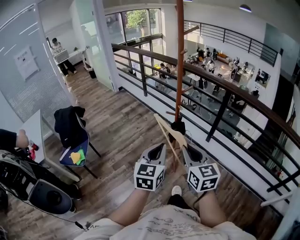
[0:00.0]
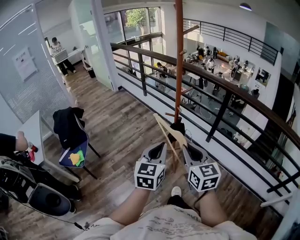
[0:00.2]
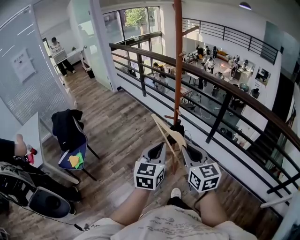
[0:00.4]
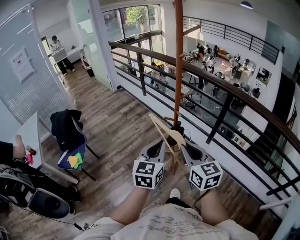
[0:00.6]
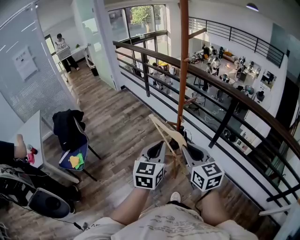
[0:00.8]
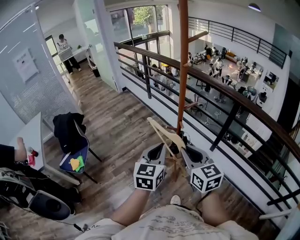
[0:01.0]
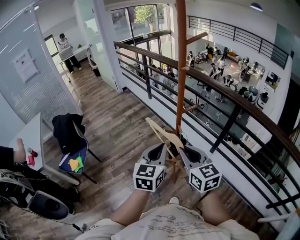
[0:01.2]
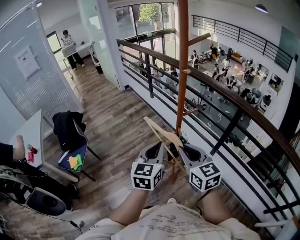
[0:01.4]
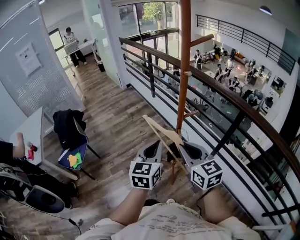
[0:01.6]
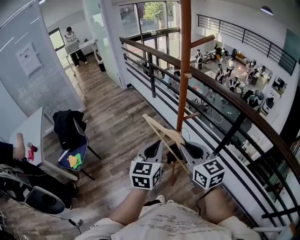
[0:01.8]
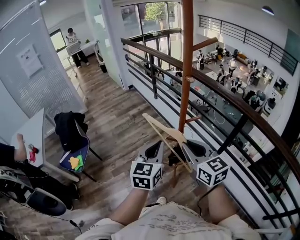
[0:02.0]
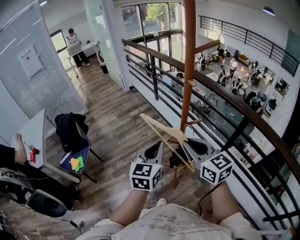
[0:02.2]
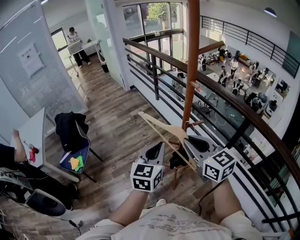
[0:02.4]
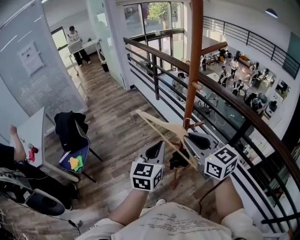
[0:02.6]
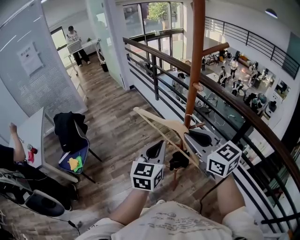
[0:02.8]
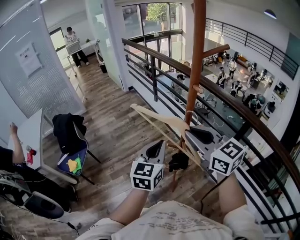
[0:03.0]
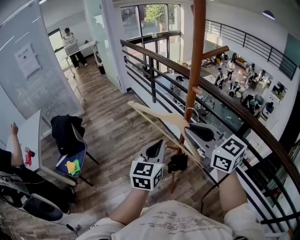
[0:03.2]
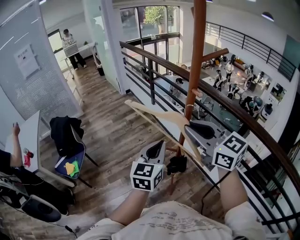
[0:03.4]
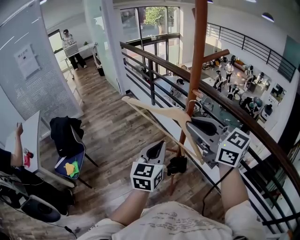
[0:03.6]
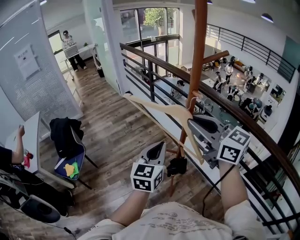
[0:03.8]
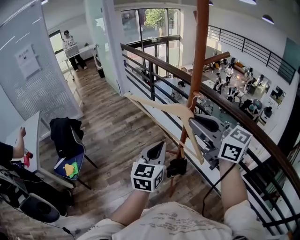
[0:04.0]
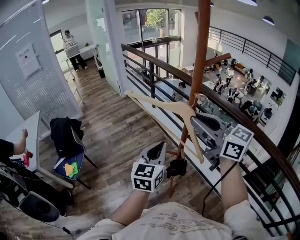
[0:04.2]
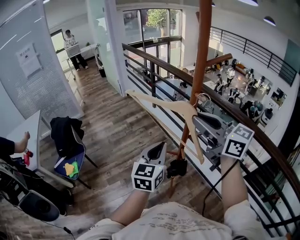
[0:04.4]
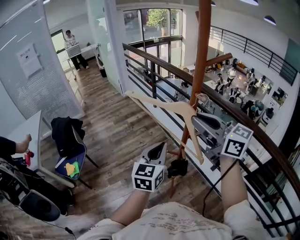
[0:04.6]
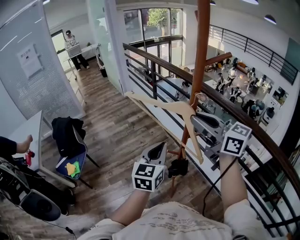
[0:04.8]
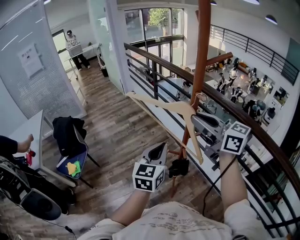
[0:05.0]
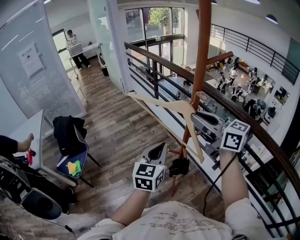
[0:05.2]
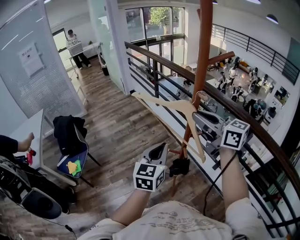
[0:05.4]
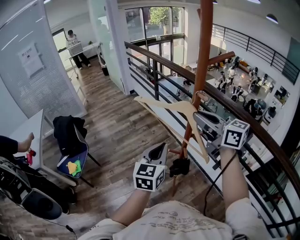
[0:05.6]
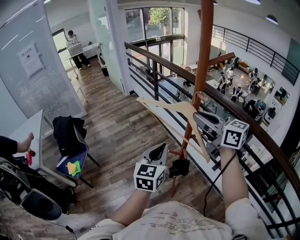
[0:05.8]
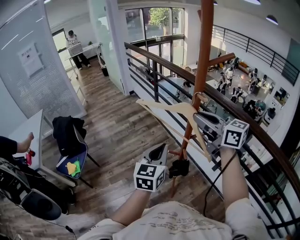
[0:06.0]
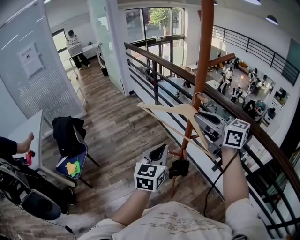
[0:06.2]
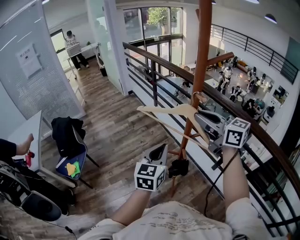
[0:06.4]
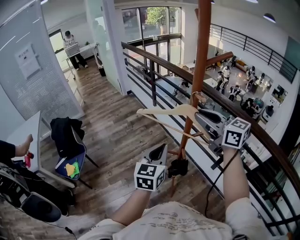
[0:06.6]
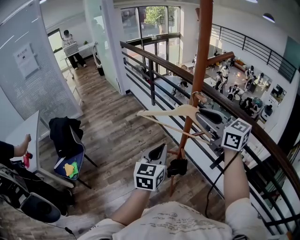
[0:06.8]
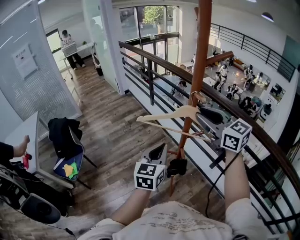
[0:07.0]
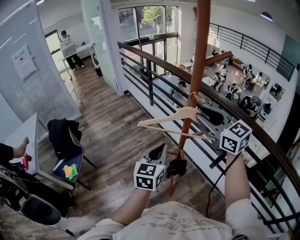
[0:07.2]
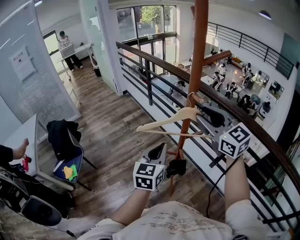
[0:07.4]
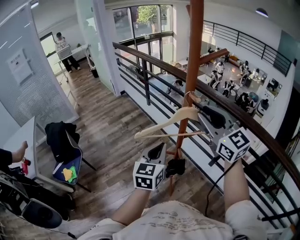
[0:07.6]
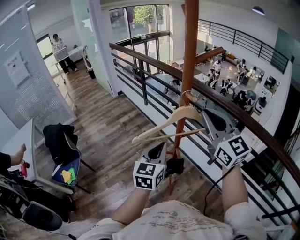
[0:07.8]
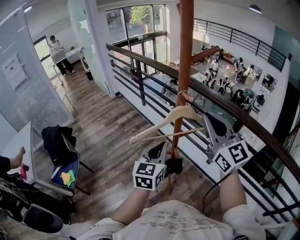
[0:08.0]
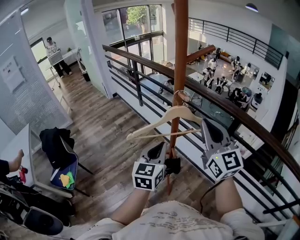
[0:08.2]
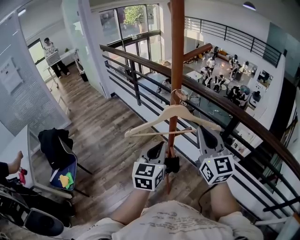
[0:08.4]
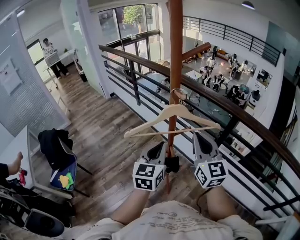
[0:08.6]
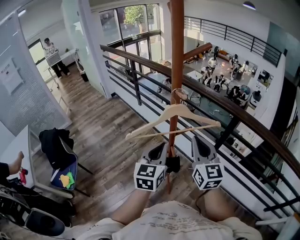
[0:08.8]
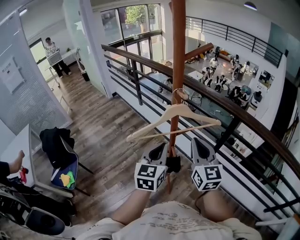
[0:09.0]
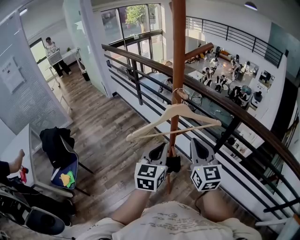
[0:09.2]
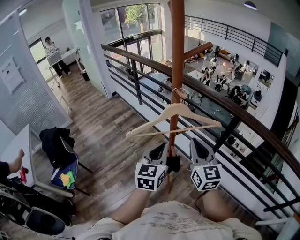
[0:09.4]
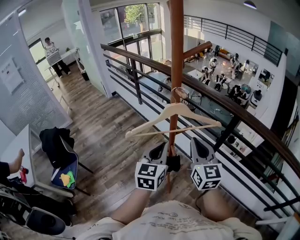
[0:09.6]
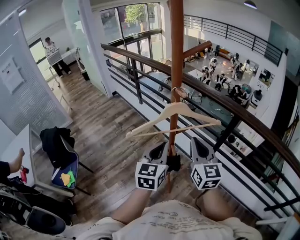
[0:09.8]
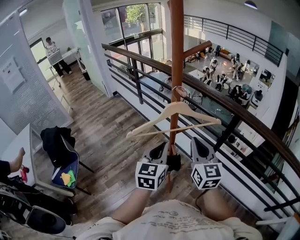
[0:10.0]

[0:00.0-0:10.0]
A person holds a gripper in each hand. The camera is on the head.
0:00.0 to 0:01.4: Both grippers travel together forward, roughly 20 cm.
0:01.4 to 0:02.8: The right gripper moves forward and upward, about 15 cm. Meanwhile the left gripper is displaced forward by some 10 cm.
0:02.8 to 0:04.2: The right gripper heads upward, covering about 10 cm.
0:04.2 to 0:05.8: The right gripper shifts by about 5 cm.
0:05.8 to 0:07.2: The right gripper changes its angle by about 30 degrees.
0:07.2 to 0:08.6: The right gripper travels backward and downward by some 10 cm, changes its angle by approximately 30 degrees, and closes up.
0:08.6 to 0:10.0: The grippers make only small movements.

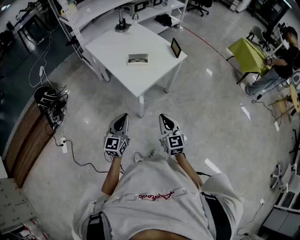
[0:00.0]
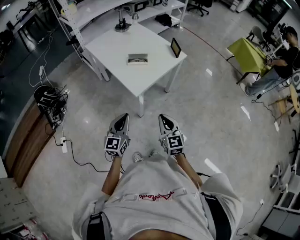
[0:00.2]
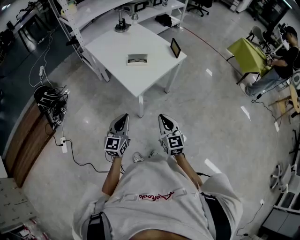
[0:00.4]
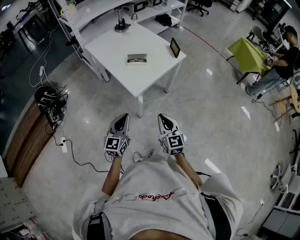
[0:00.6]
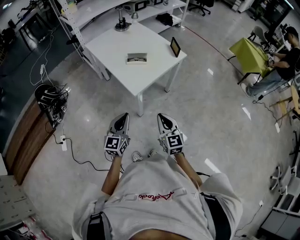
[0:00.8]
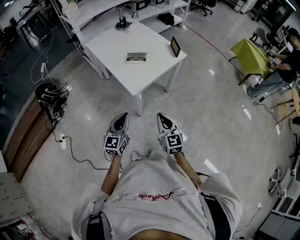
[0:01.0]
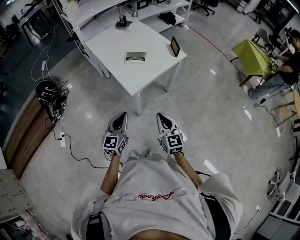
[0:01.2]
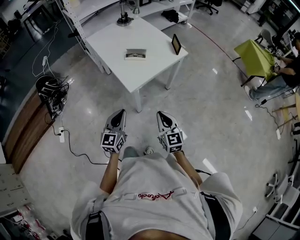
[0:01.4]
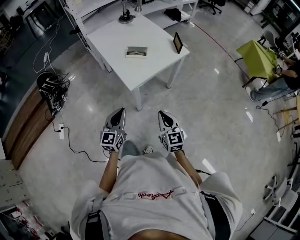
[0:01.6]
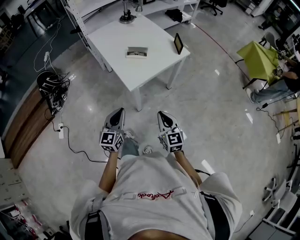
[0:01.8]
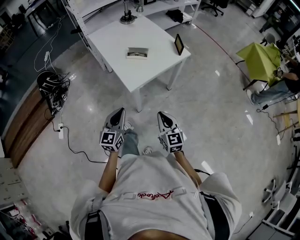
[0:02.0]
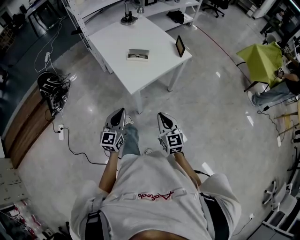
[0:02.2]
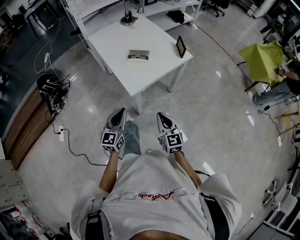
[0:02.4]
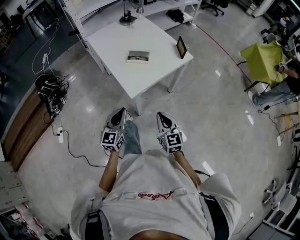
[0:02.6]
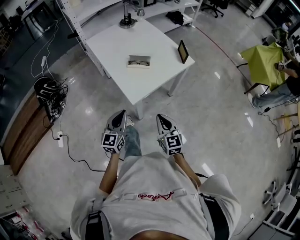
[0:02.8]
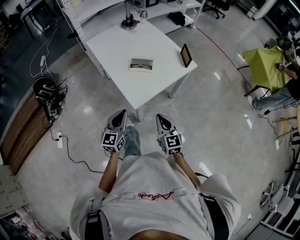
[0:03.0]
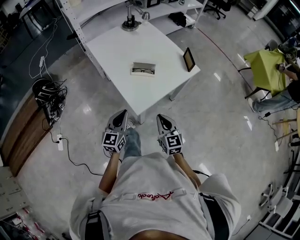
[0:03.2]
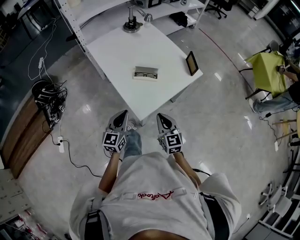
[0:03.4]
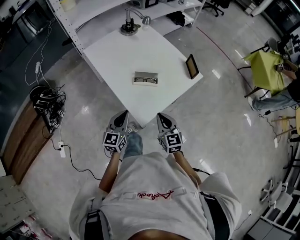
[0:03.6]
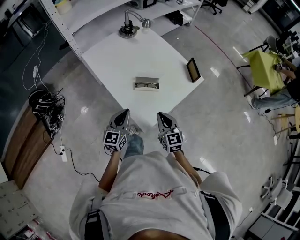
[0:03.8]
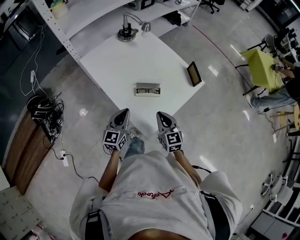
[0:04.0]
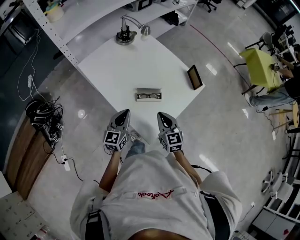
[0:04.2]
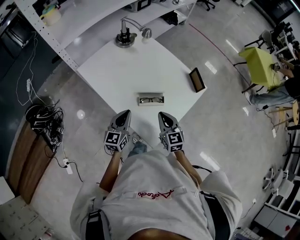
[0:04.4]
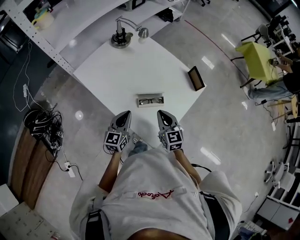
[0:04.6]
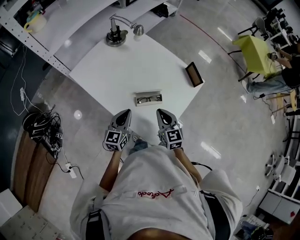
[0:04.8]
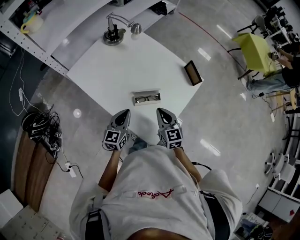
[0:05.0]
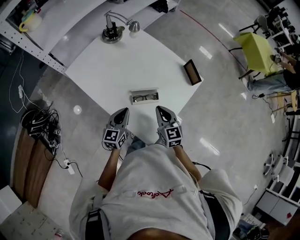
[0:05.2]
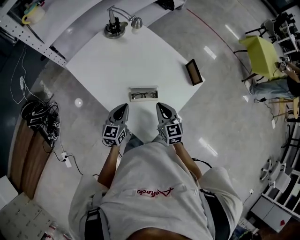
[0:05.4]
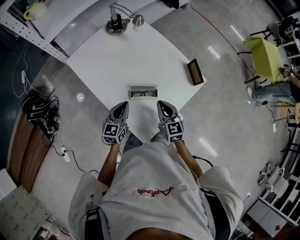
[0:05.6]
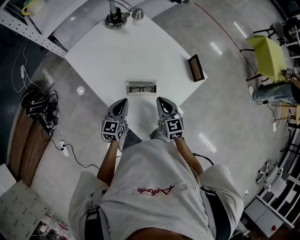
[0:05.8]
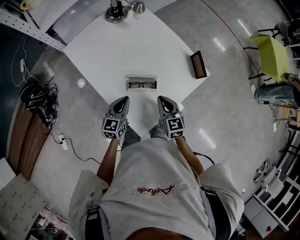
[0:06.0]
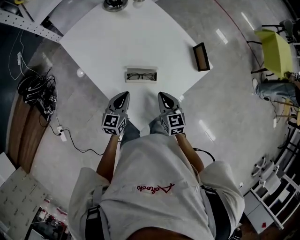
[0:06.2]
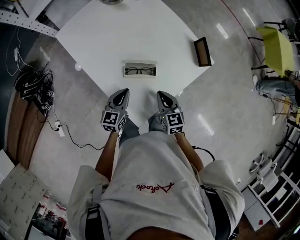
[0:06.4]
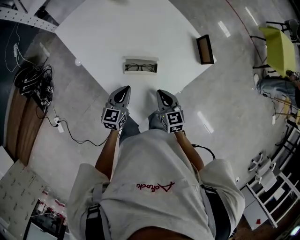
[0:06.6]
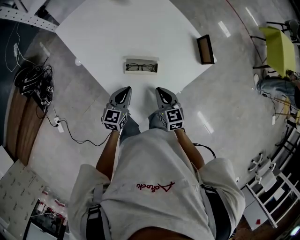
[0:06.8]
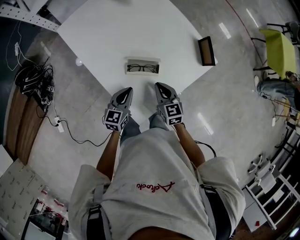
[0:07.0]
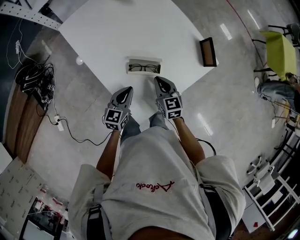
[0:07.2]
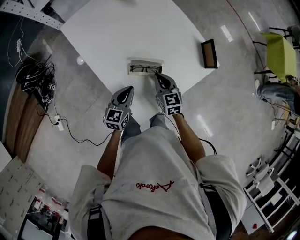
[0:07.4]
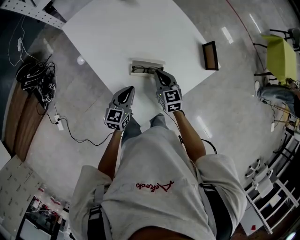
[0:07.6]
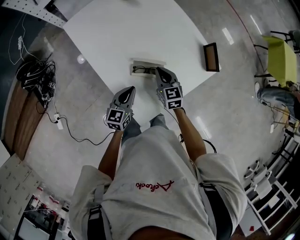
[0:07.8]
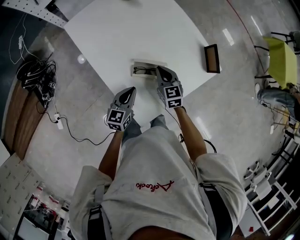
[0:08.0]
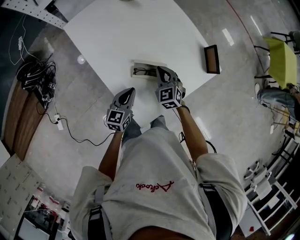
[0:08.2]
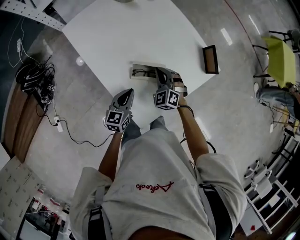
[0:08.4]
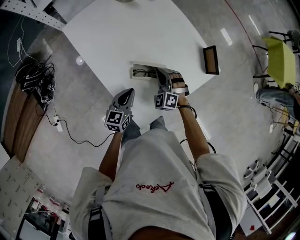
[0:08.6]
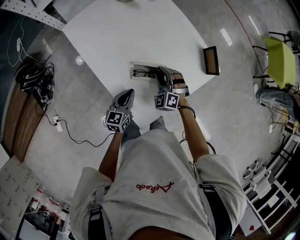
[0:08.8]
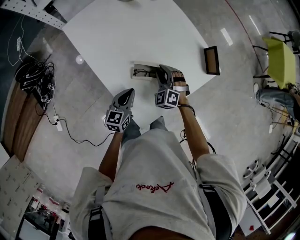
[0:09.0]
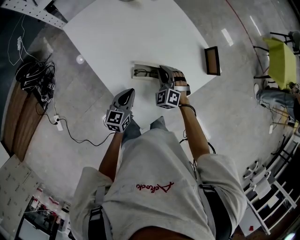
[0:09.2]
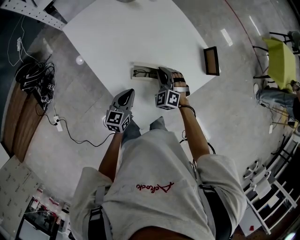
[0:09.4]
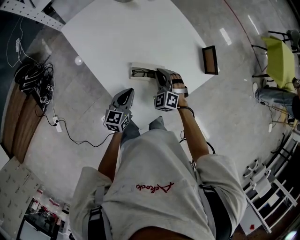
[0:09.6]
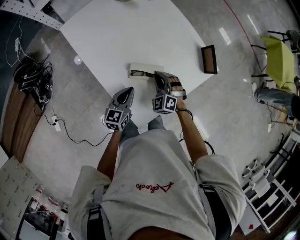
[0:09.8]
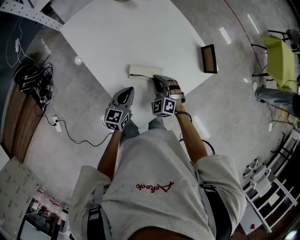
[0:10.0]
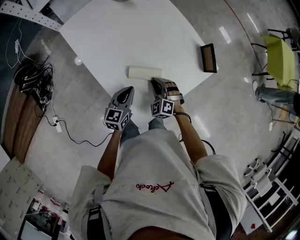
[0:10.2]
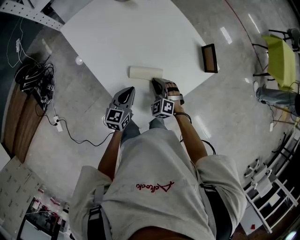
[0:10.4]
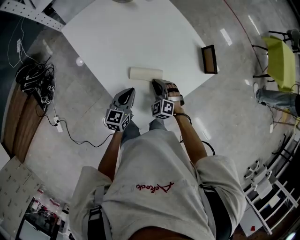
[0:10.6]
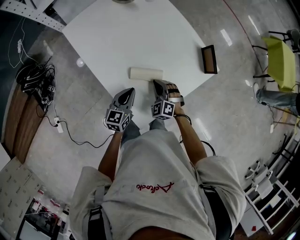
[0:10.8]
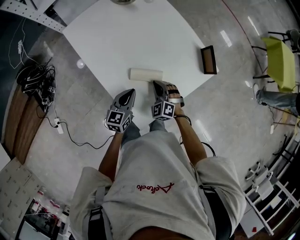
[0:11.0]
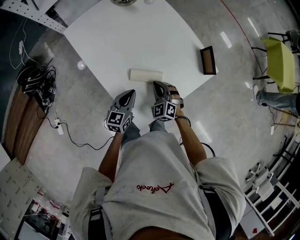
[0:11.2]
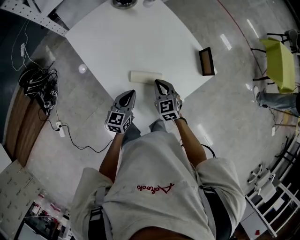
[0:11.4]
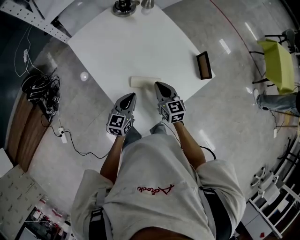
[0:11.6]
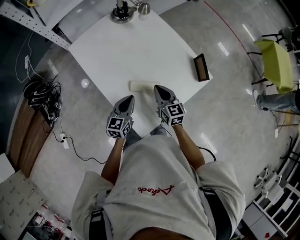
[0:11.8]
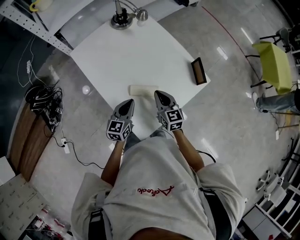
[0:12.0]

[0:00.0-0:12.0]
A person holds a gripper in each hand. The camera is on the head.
0:00.0 to 0:01.6: The right gripper shifts some 5 cm to the right.
0:01.6 to 0:03.0: The two grippers go about 10 cm forward.
0:03.0 to 0:04.4: The two grippers go some 25 cm forward.
0:04.4 to 0:06.0: The left gripper travels downward and to the right by about 10 cm; the right gripper is displaced to the right and downward by about 5 cm.
0:06.0 to 0:07.6: The right gripper moves forward and downward, approximately 10 cm.
0:07.6 to 0:09.0: The right gripper rotates around the line of its fingers by about 50 degrees, counterclockwise from behind, and opens its fingers.
0:09.0 to 0:10.4: The right gripper shifts about 5 cm backward.
0:10.4 to 0:12.0: The left gripper travels upward by approximately 5 cm. The right gripper shifts approximately 15 cm upward, and rolls clockwise, seen from behind, by roughly 50 degrees.

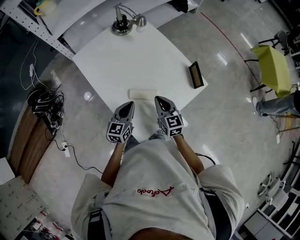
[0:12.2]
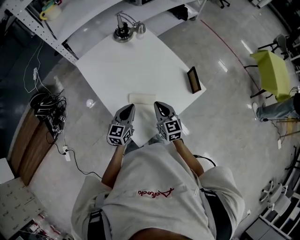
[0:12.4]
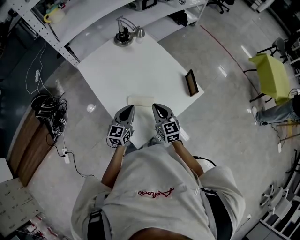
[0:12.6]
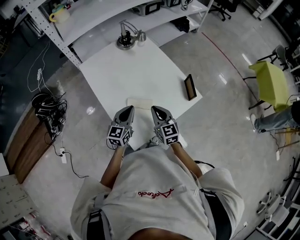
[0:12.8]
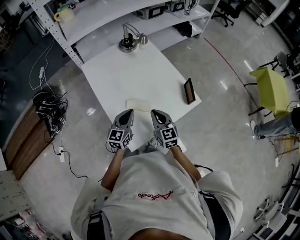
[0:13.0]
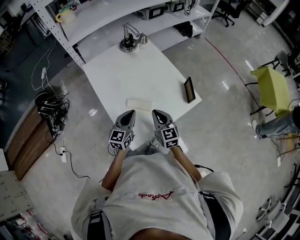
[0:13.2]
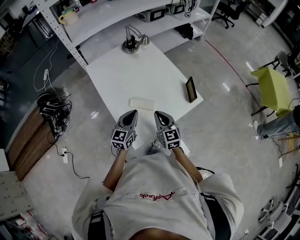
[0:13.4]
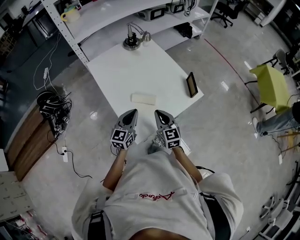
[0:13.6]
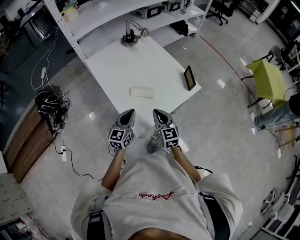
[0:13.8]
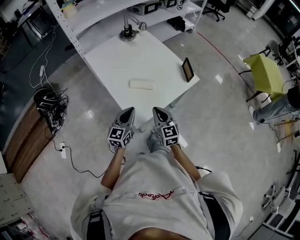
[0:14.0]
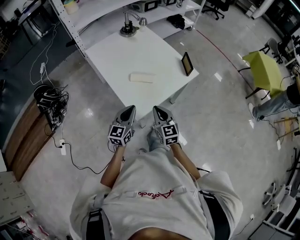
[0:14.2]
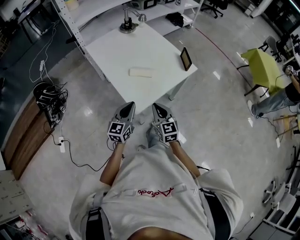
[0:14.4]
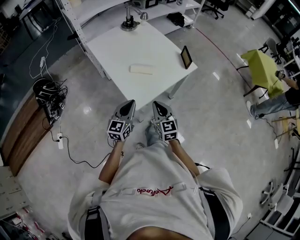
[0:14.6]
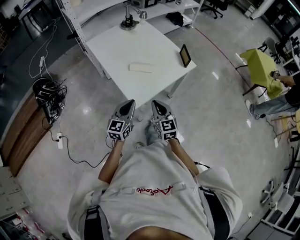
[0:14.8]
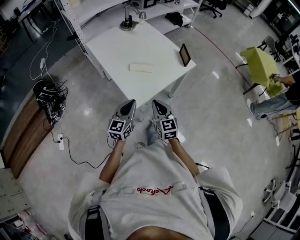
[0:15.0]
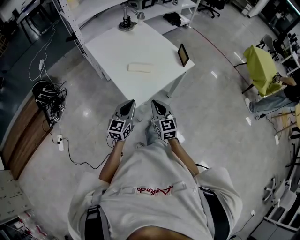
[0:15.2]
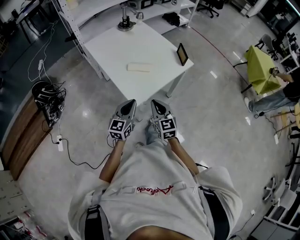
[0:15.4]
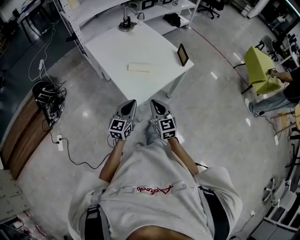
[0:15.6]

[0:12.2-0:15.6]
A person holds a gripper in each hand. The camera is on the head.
0:12.2 to 0:13.8: The right gripper heads backward, covering roughly 10 cm. Meanwhile the left gripper goes about 10 cm backward and upward.
0:13.8 to 0:15.6: The two grippers go roughly 15 cm backward.
